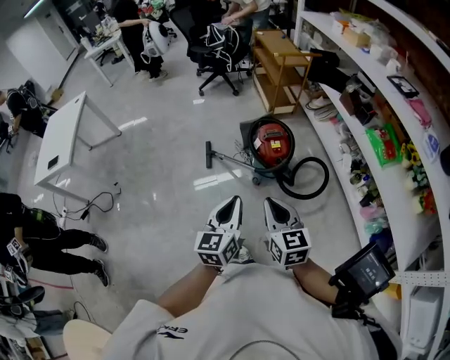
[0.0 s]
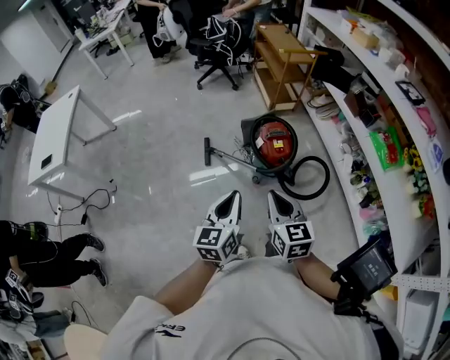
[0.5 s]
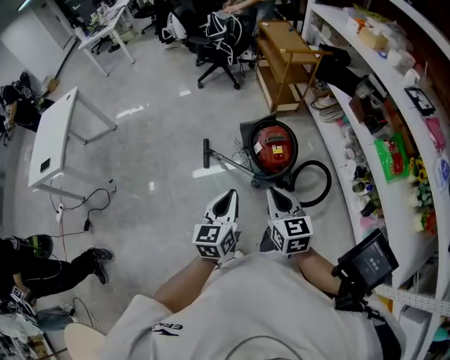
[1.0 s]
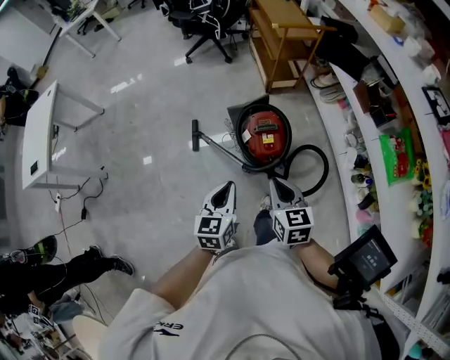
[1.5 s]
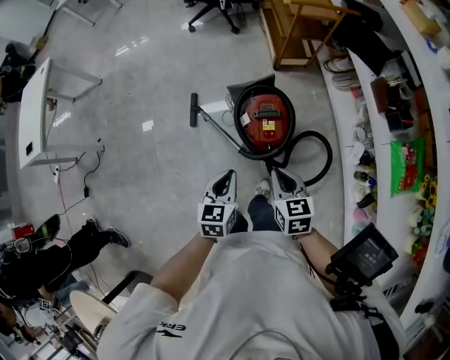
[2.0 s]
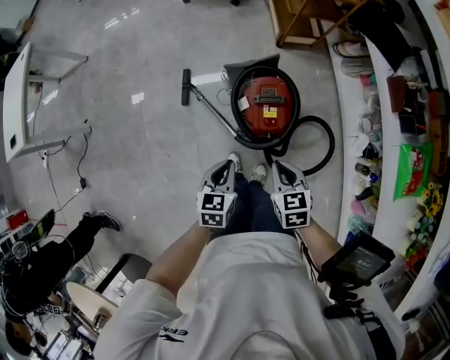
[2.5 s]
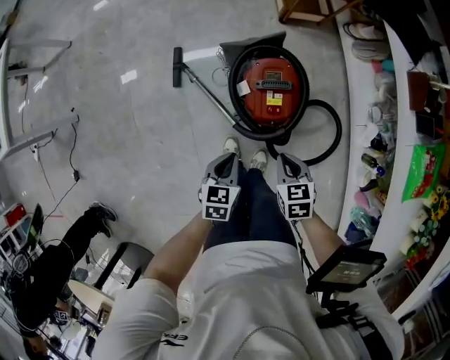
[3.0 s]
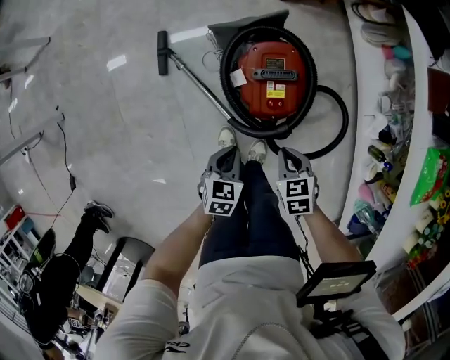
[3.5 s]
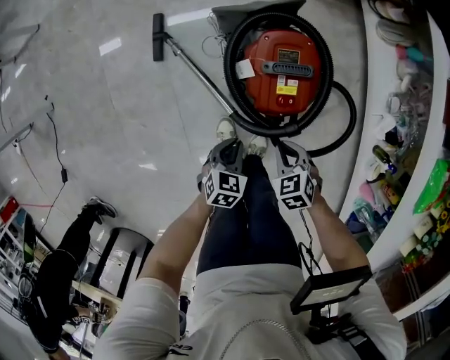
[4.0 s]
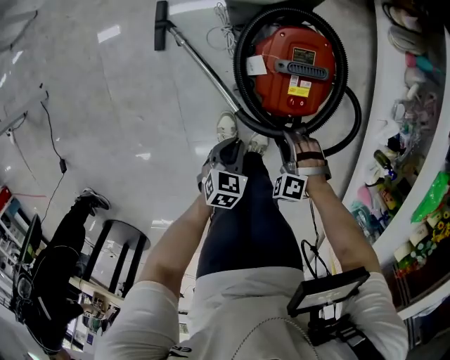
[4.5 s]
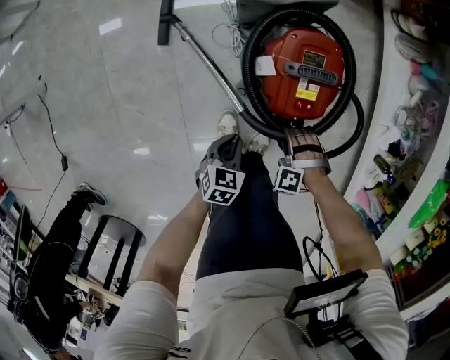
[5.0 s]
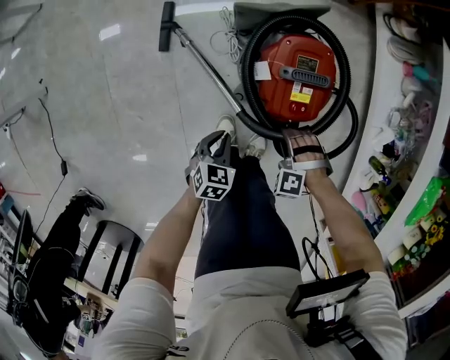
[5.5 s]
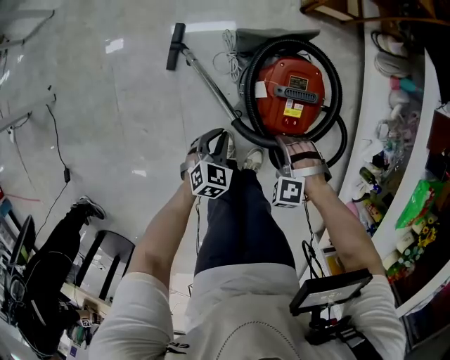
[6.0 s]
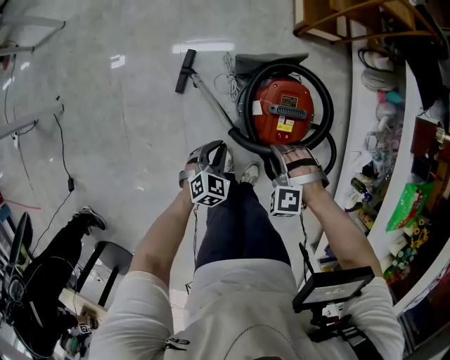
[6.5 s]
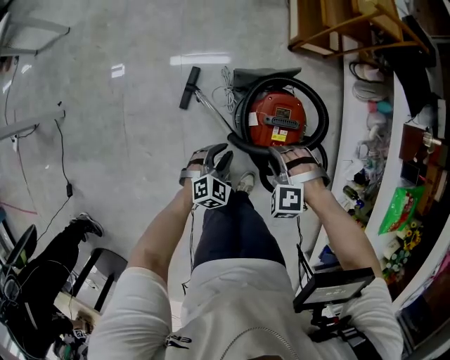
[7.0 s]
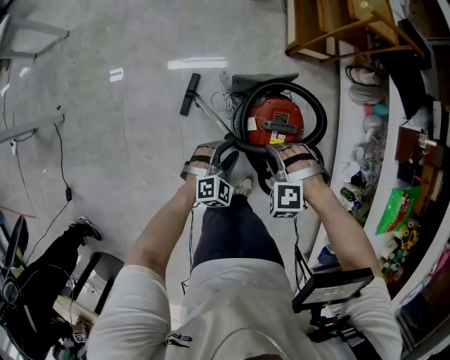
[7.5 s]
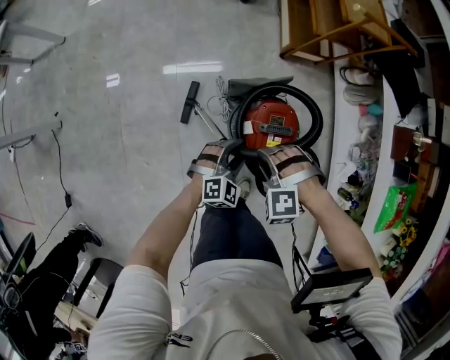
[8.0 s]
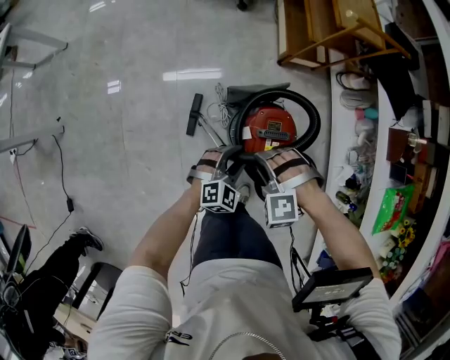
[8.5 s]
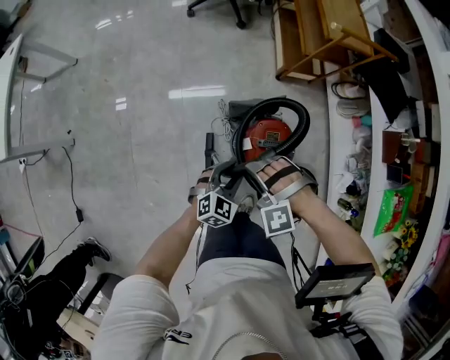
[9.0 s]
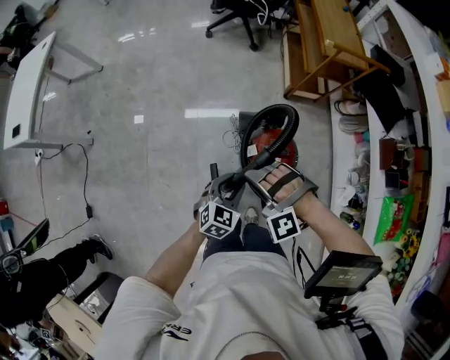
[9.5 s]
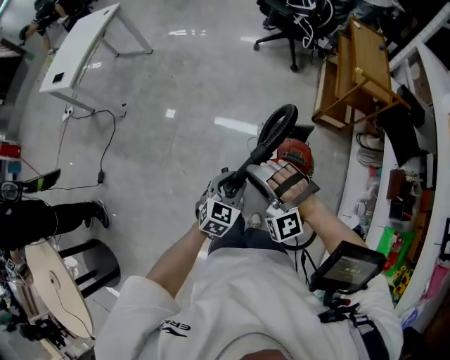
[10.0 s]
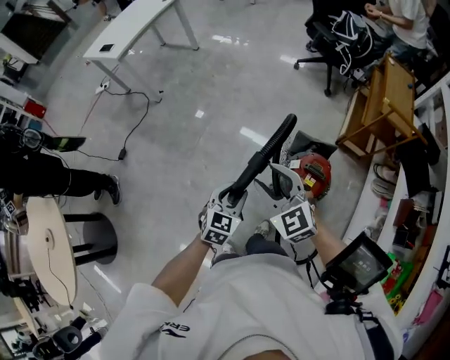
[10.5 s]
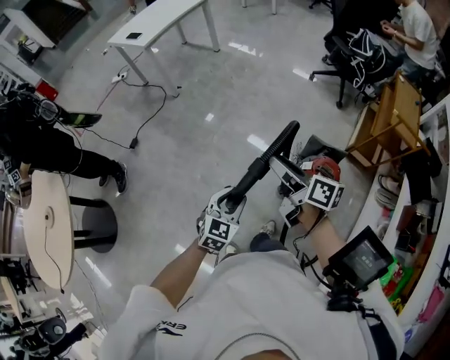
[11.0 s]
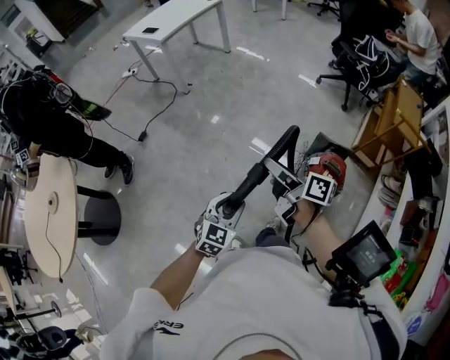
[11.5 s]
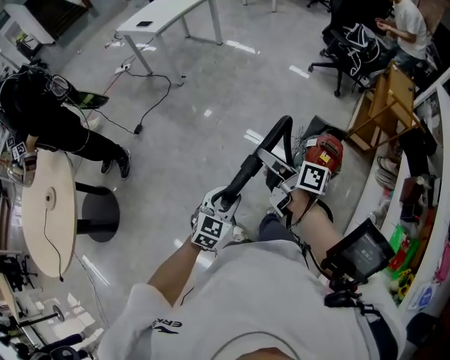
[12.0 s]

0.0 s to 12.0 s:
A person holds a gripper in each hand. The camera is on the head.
0.0 to 2.0 s: Both grippers move forward, downward and to the right, some 40 cm. The left gripper changes its angle by about 30 degrees; the right gripper turns by approximately 20 degrees.
2.0 to 4.0 s: The two grippers go some 40 cm downward. The right gripper rotates approximately 40 degrees. Meanwhile the left gripper rotates about 30 degrees.
4.0 to 6.0 s: The left gripper ends up about 10 cm from where it was; the right gripper goes downward and returns, approximately 10 cm each way, twists approximately 60 degrees counterclockwise, seen from behind, and opens up.
6.0 to 8.0 s: The right gripper travels upward and to the left by about 20 cm. Meanwhile the left gripper travels upward and forward by roughly 15 cm, rotates roughly 30 degrees, and opens up.
8.0 to 10.0 s: Both grippers travel together upward, roughly 20 cm. The right gripper angles its fingers upward, by about 40 degrees. The left gripper changes its angle by approximately 40 degrees.
10.0 to 12.0 s: The left gripper travels to the left and backward by roughly 40 cm; the right gripper travels to the left, backward and upward by about 30 cm, and rotates around the line of its fingers by some 130 degrees, clockwise from behind.

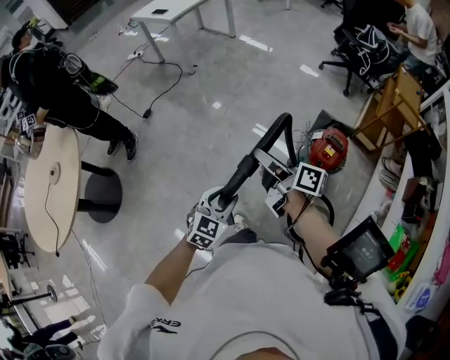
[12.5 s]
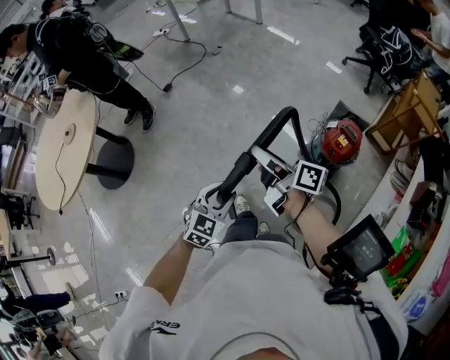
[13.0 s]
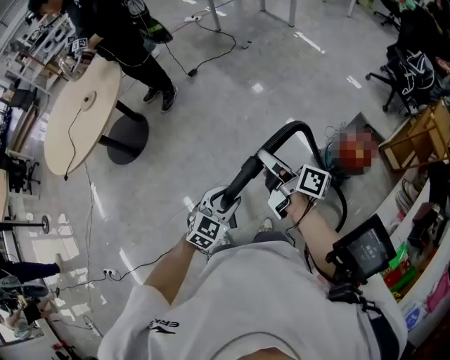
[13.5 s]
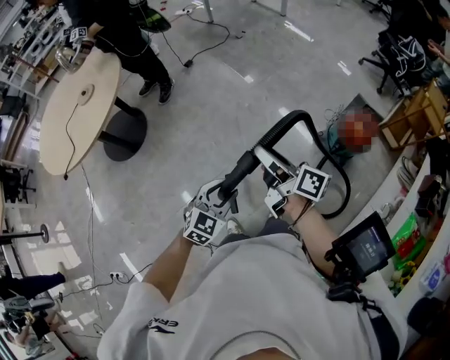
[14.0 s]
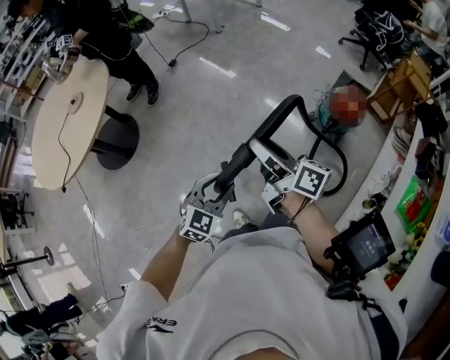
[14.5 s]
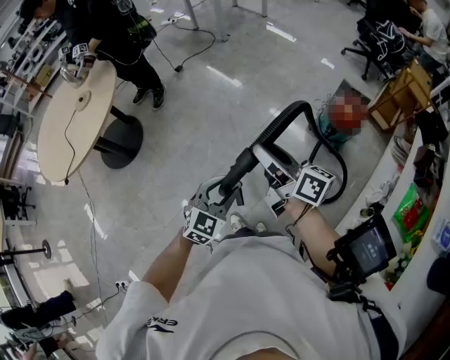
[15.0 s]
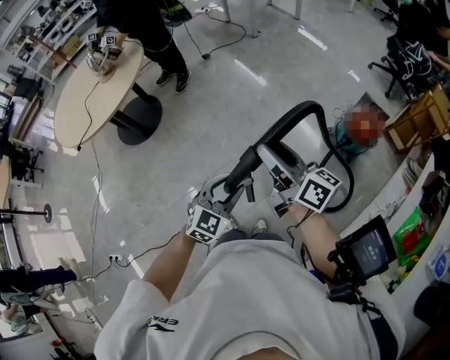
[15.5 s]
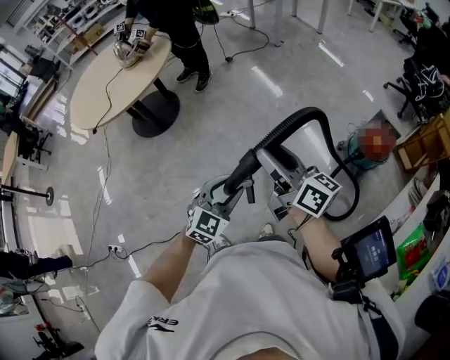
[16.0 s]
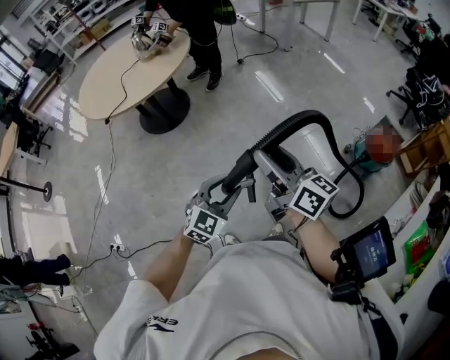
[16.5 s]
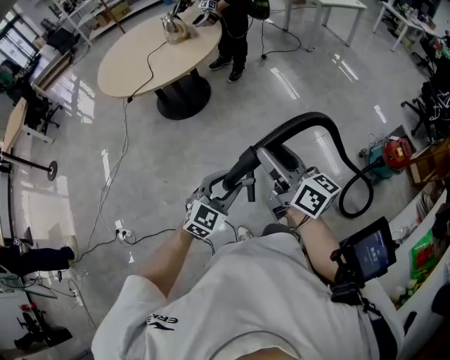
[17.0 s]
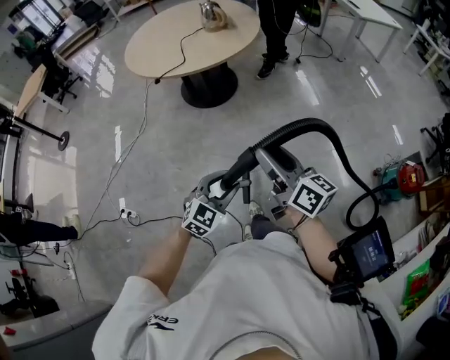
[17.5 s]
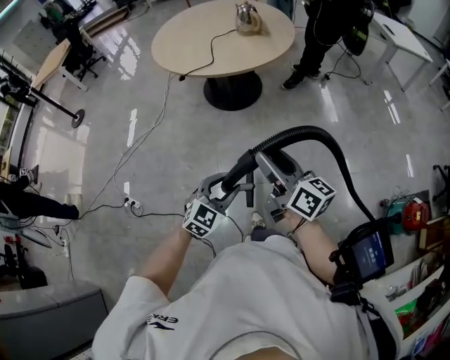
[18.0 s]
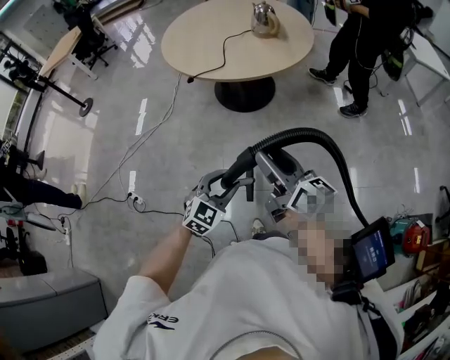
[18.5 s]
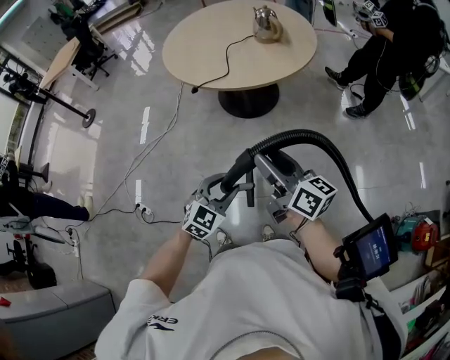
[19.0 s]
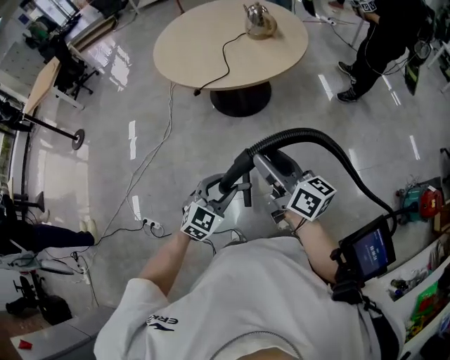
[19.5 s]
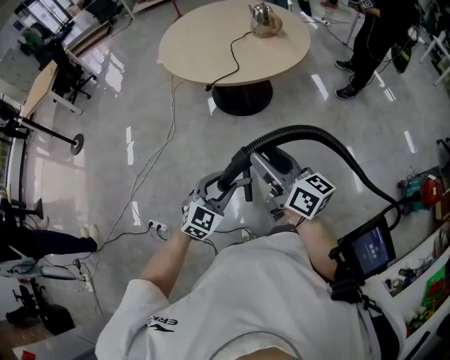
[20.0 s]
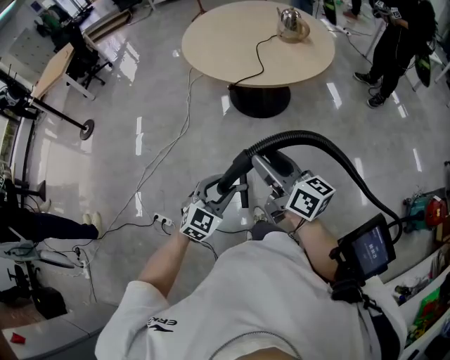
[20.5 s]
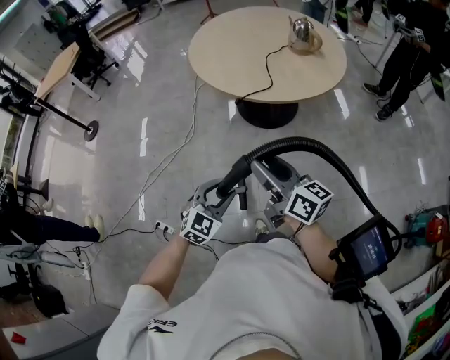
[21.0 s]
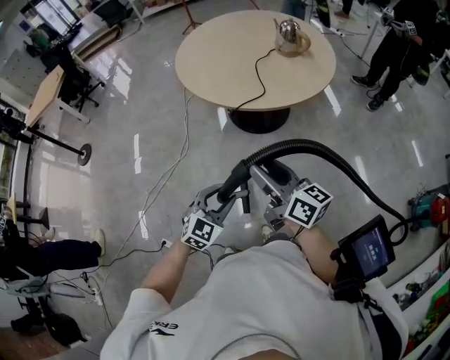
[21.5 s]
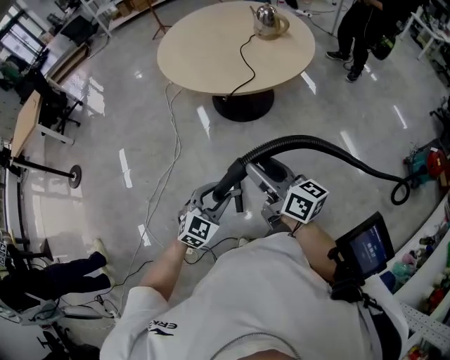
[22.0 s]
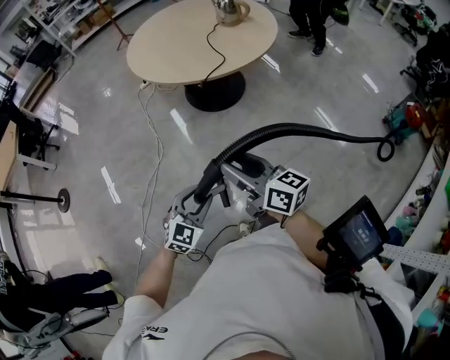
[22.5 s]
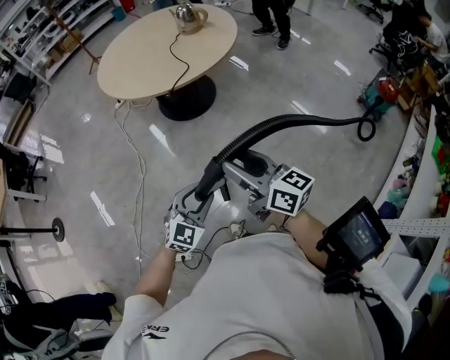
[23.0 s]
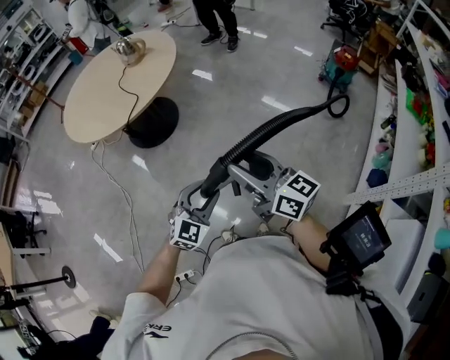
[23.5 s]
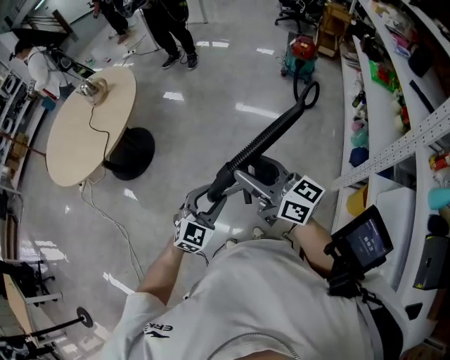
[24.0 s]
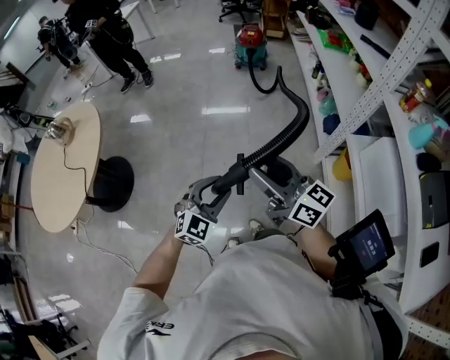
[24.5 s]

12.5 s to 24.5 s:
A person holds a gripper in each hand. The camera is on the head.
12.5 to 14.5 s: Both grippers travel together backward and to the left, roughly 35 cm.
14.5 to 16.5 s: Both grippers move to the left and backward, some 25 cm. The right gripper rotates approximately 20 degrees.
16.5 to 18.5 s: The right gripper shifts by approximately 35 cm, and swivels about 30 degrees. The left gripper shifts by some 35 cm, and swivels approximately 30 degrees.
18.5 to 20.5 s: Both grippers travel together to the left, about 30 cm.
20.5 to 22.5 s: The two grippers go about 20 cm to the left.
22.5 to 24.5 s: The two grippers travel together, some 40 cm. The right gripper turns by approximately 60 degrees. The left gripper rotates some 70 degrees.

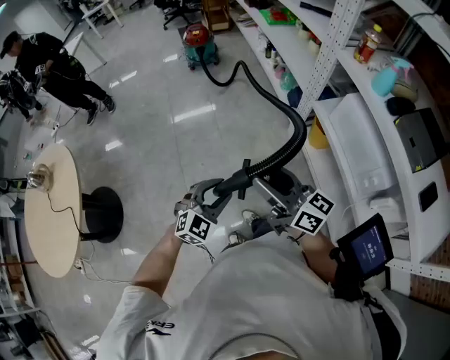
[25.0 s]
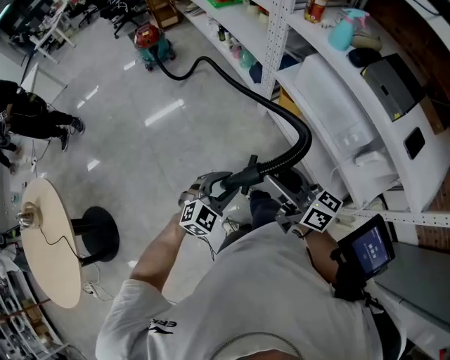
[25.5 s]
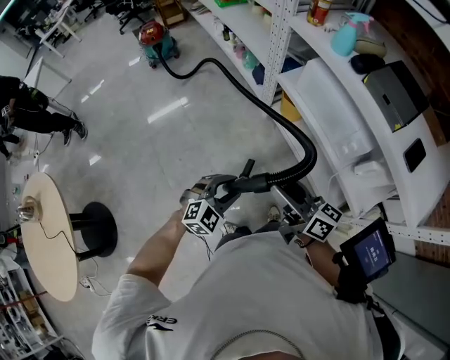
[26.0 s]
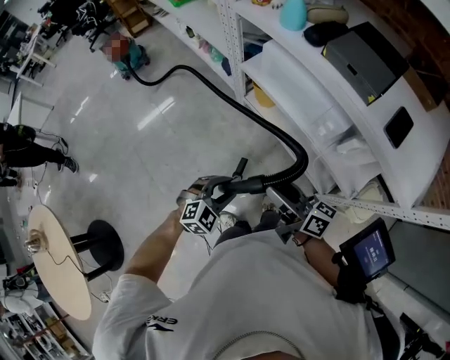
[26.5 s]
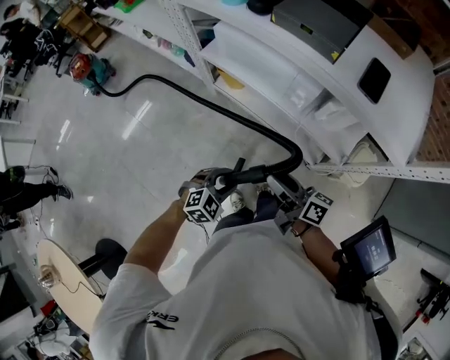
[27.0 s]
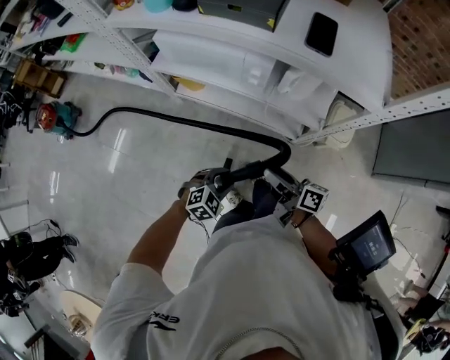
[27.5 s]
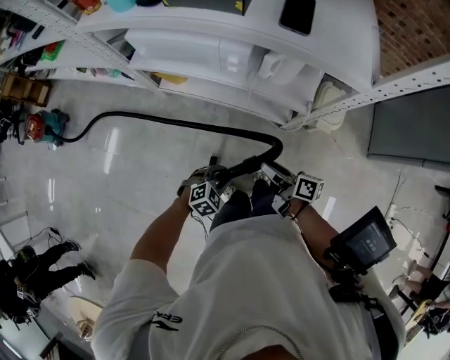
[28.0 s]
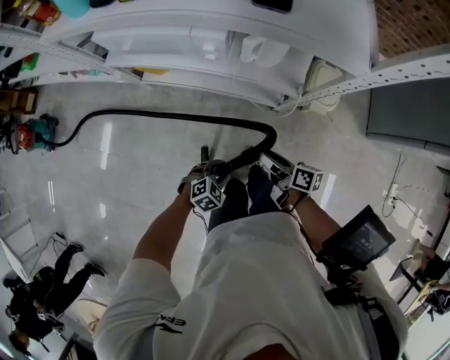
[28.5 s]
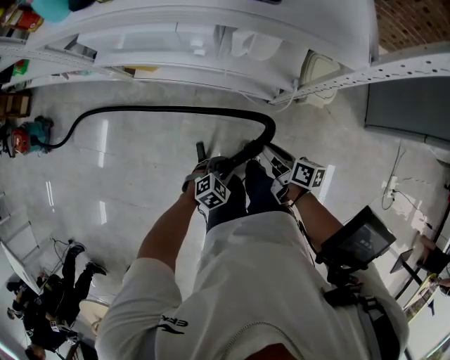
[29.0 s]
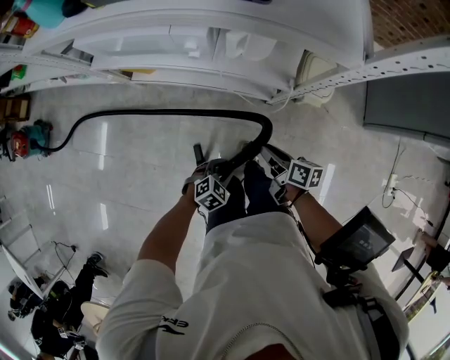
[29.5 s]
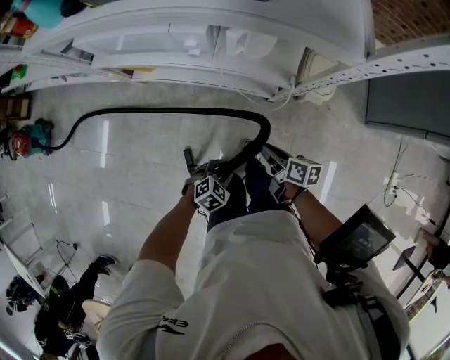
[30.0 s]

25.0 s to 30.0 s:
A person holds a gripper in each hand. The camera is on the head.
25.0 to 27.5 s: The right gripper ends up approximately 40 cm from where it was, and changes its angle by about 70 degrees. The left gripper changes place by roughly 35 cm, and turns by some 70 degrees.
27.5 to 30.0 s: Both grippers move downward and to the right, about 20 cm. The right gripper changes its angle by some 30 degrees, and closes.
